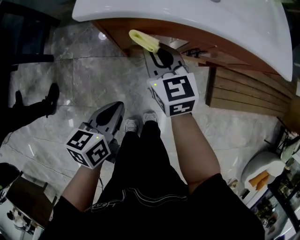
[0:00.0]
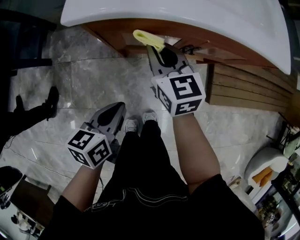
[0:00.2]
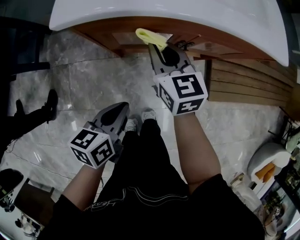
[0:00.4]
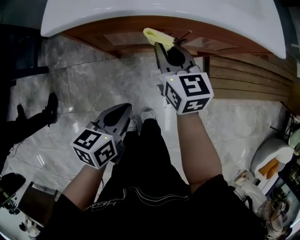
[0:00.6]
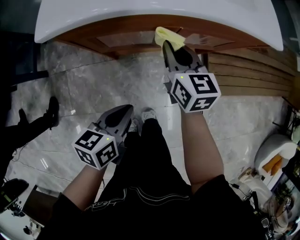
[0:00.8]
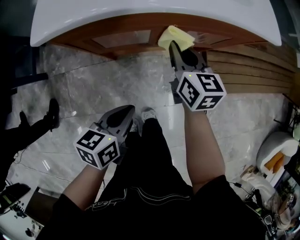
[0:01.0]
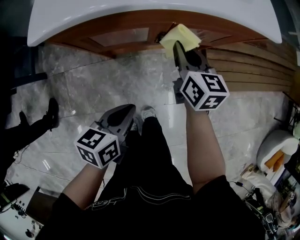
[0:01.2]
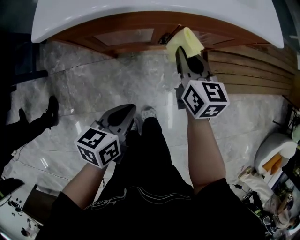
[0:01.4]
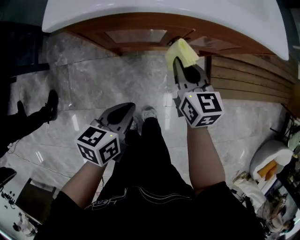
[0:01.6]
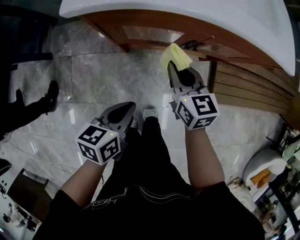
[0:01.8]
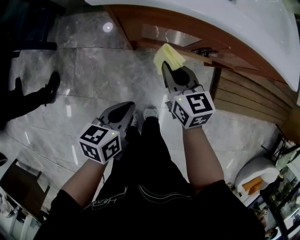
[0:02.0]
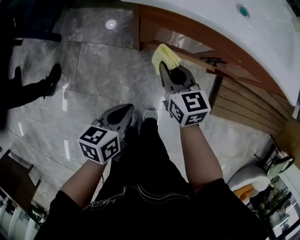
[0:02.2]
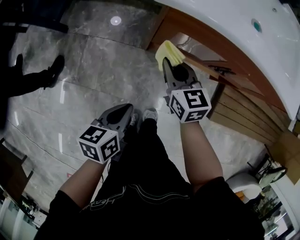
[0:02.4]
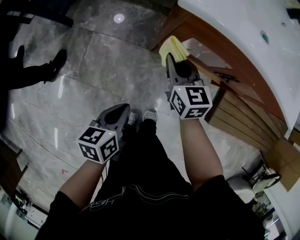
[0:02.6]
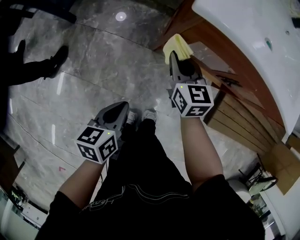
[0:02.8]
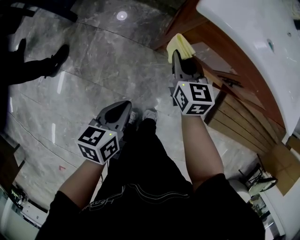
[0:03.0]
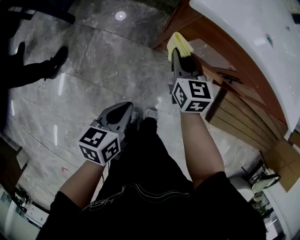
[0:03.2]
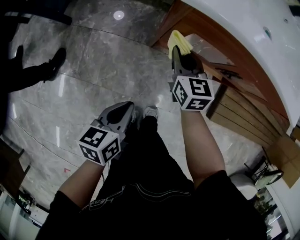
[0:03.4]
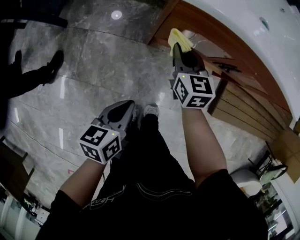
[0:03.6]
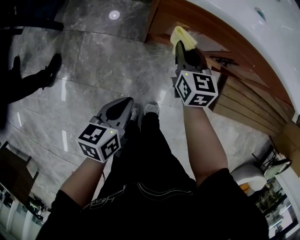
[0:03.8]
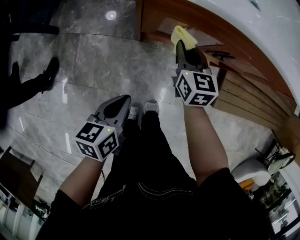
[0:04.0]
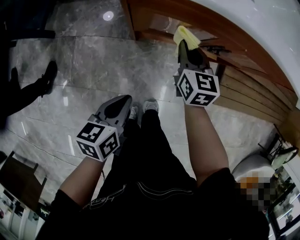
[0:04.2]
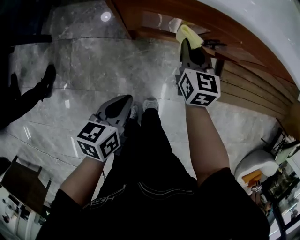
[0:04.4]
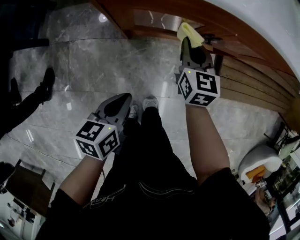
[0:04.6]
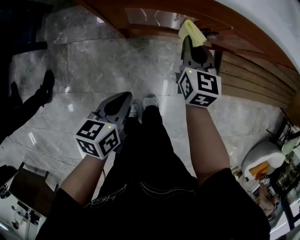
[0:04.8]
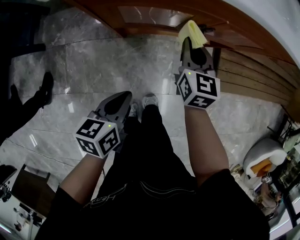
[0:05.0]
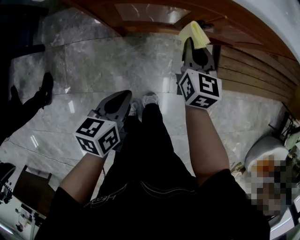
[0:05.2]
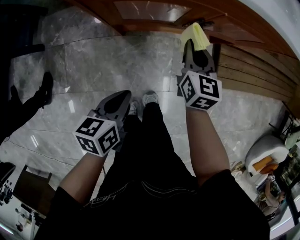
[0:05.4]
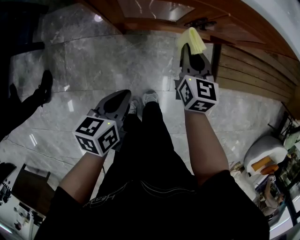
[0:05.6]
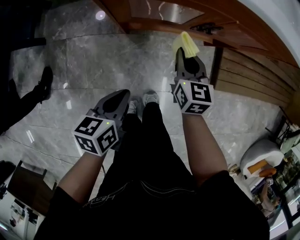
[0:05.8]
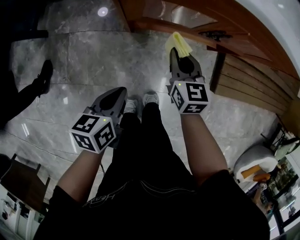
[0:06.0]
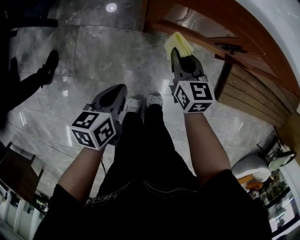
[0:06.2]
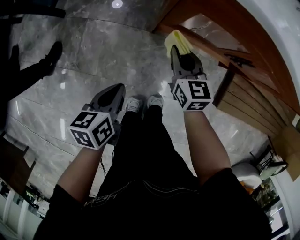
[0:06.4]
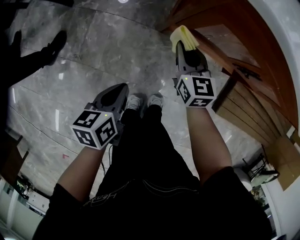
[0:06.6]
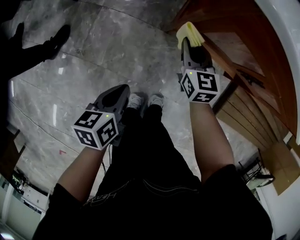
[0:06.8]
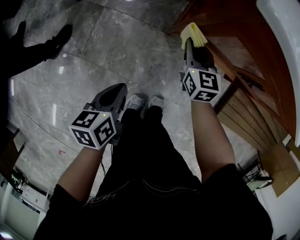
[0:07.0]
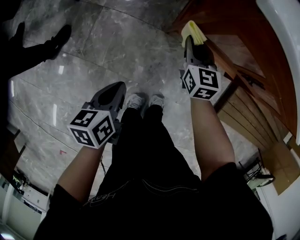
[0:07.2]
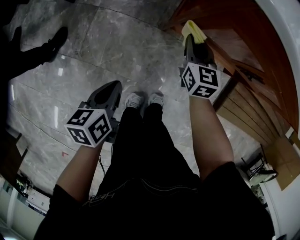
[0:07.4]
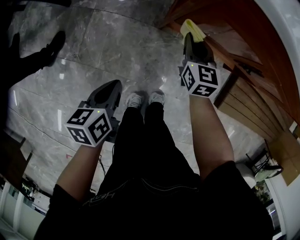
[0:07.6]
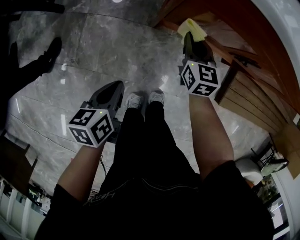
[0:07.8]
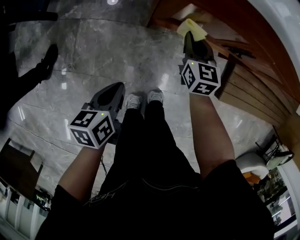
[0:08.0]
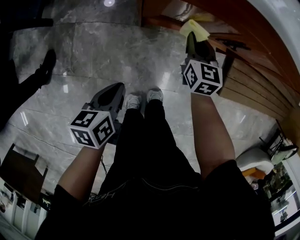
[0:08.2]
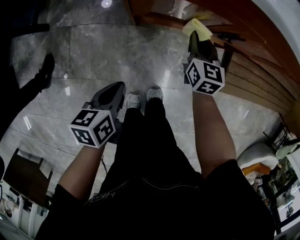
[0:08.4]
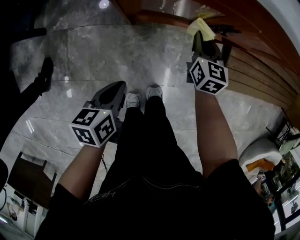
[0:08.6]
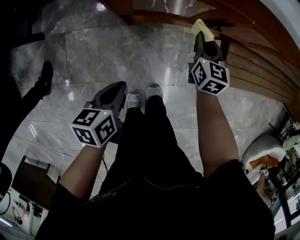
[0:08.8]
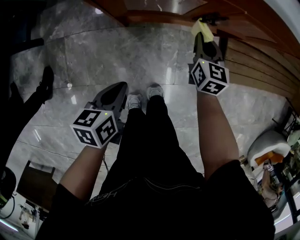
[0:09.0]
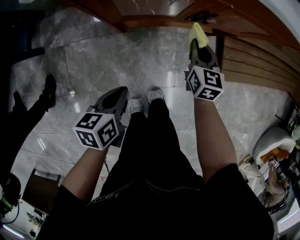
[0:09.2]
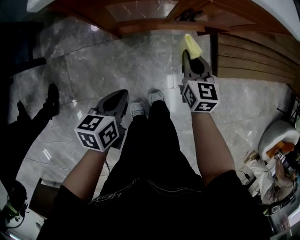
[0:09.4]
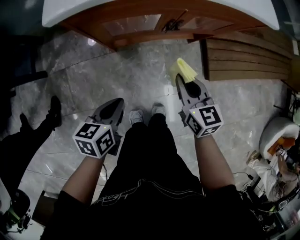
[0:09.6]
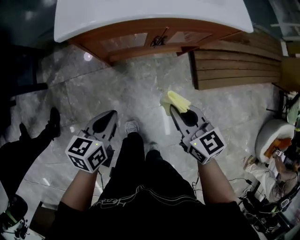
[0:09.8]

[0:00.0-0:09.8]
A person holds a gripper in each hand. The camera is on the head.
0:00.0 to 0:01.4: The right gripper travels to the right by approximately 20 cm, and swivels roughly 30 degrees; the left gripper heads to the right, covering roughly 10 cm.
0:01.4 to 0:02.8: The left gripper ends up about 20 cm from where it was, and rotates about 30 degrees. The right gripper ends up roughly 30 cm from where it was, and swivels roughly 30 degrees.
0:02.8 to 0:04.2: The left gripper goes some 10 cm to the right. Meanwhile the right gripper goes some 15 cm to the right.
0:04.2 to 0:05.6: The right gripper travels to the right by about 10 cm.
0:05.6 to 0:07.0: The right gripper shifts by about 25 cm, and changes its angle by roughly 30 degrees. The left gripper changes place by approximately 20 cm, and turns by some 30 degrees.
0:07.0 to 0:08.4: The left gripper heads to the right, covering some 10 cm. Meanwhile the right gripper is displaced to the right by approximately 20 cm, and swivels about 20 degrees.
0:08.4 to 0:09.8: The left gripper shifts roughly 15 cm upward and to the right, and swivels approximately 30 degrees. The right gripper travels upward, backward and to the right by some 30 cm.

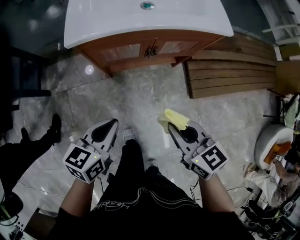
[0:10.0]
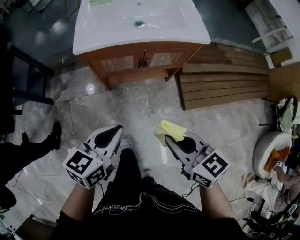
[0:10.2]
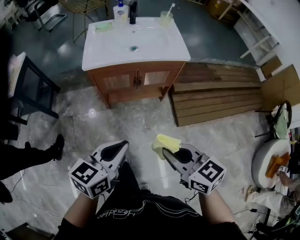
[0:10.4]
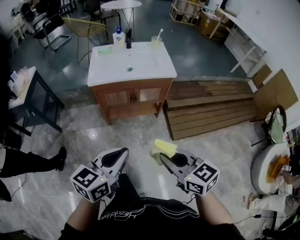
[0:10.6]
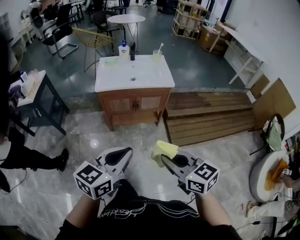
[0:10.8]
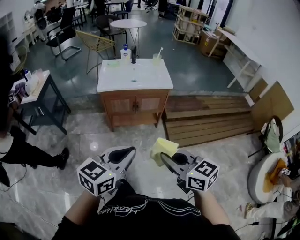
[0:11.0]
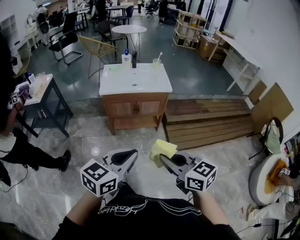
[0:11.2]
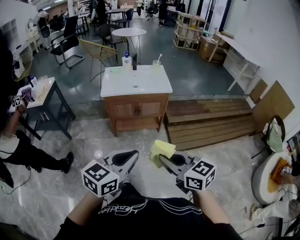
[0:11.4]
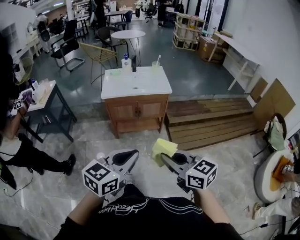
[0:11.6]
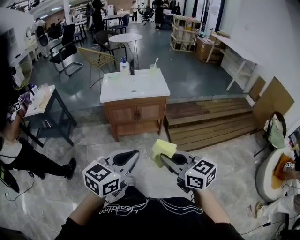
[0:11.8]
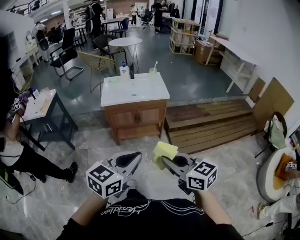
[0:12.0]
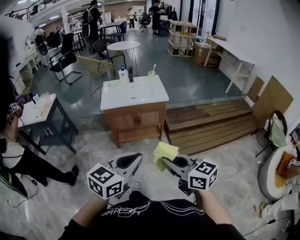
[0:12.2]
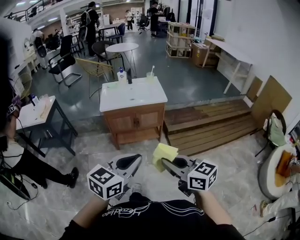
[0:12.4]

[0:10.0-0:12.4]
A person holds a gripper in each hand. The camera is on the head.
0:10.0 to 0:11.2: The left gripper moves backward, upward and to the right, roughly 50 cm, and turns by about 30 degrees; the right gripper goes about 40 cm backward and upward.
0:11.2 to 0:12.4: There are only small adjustments of the grippers.

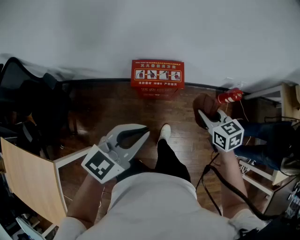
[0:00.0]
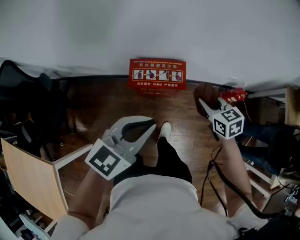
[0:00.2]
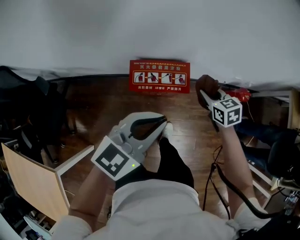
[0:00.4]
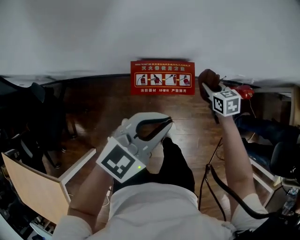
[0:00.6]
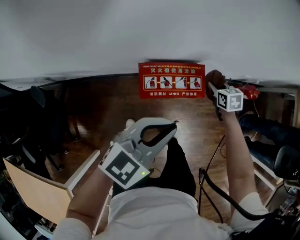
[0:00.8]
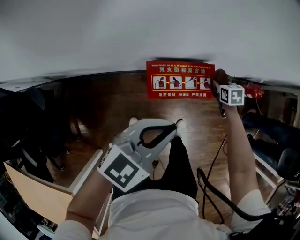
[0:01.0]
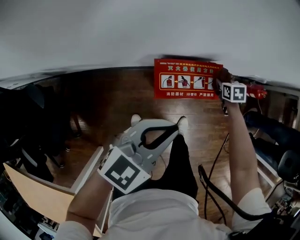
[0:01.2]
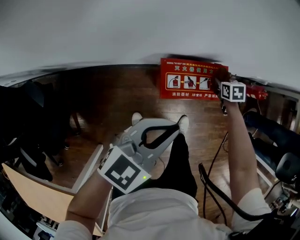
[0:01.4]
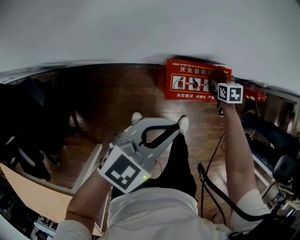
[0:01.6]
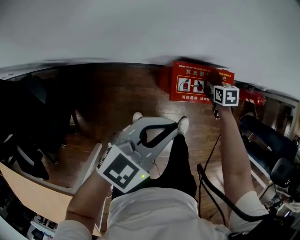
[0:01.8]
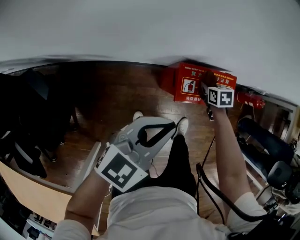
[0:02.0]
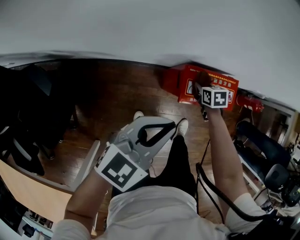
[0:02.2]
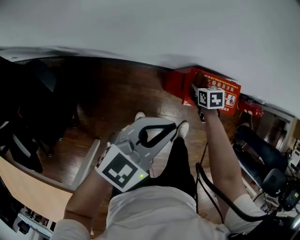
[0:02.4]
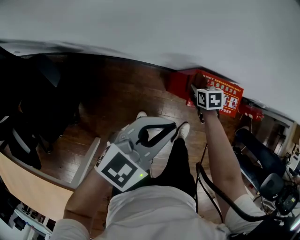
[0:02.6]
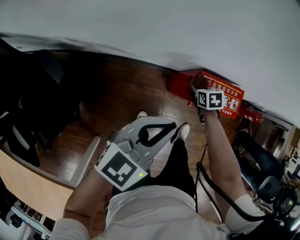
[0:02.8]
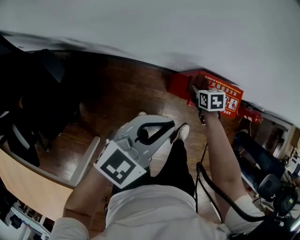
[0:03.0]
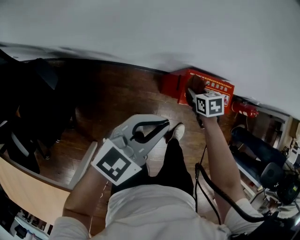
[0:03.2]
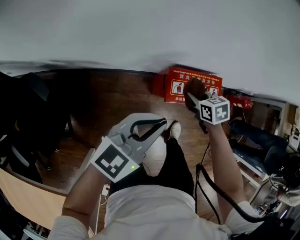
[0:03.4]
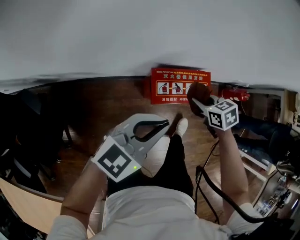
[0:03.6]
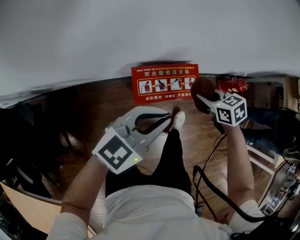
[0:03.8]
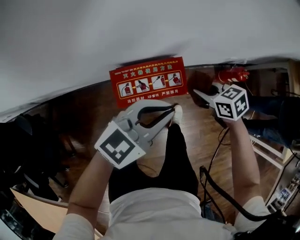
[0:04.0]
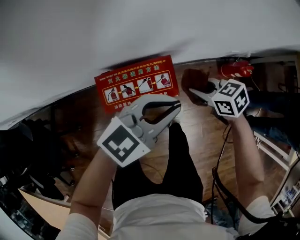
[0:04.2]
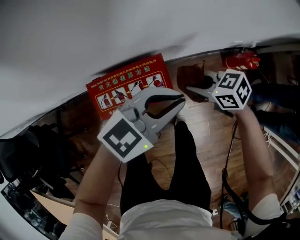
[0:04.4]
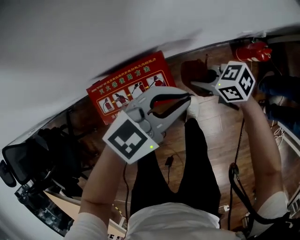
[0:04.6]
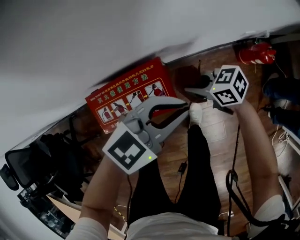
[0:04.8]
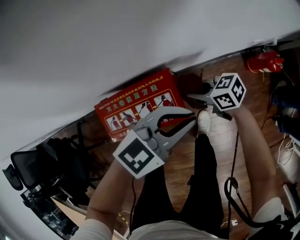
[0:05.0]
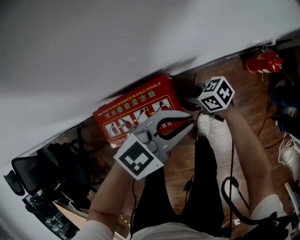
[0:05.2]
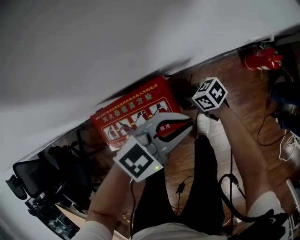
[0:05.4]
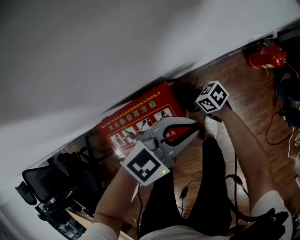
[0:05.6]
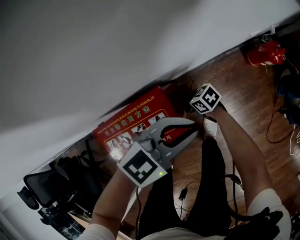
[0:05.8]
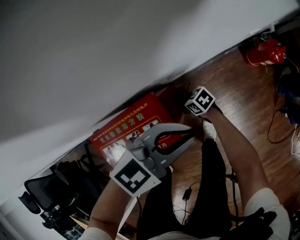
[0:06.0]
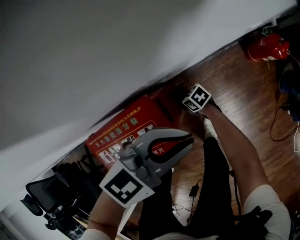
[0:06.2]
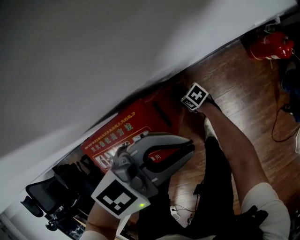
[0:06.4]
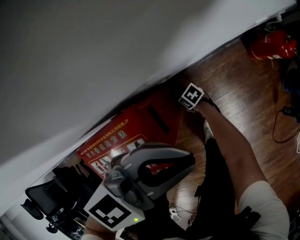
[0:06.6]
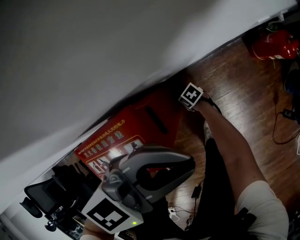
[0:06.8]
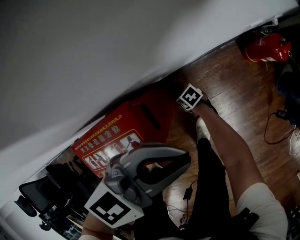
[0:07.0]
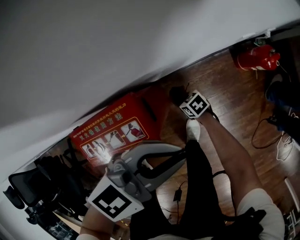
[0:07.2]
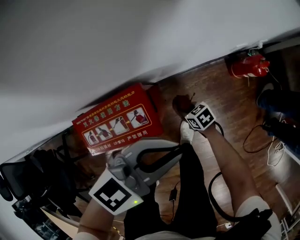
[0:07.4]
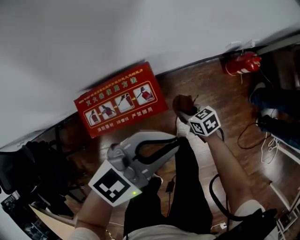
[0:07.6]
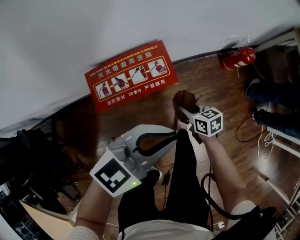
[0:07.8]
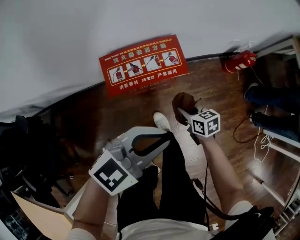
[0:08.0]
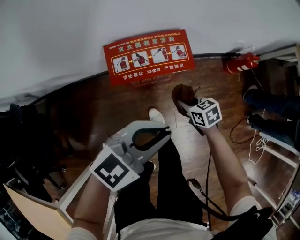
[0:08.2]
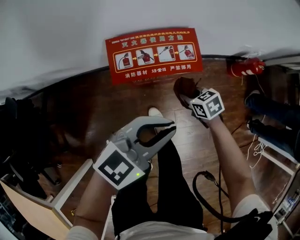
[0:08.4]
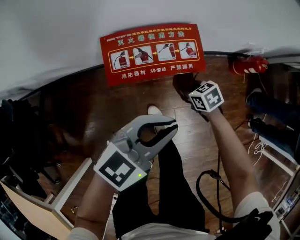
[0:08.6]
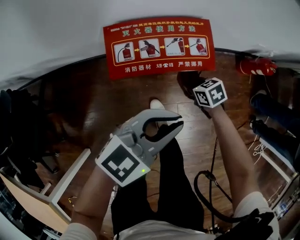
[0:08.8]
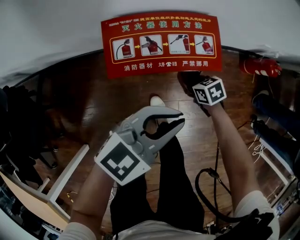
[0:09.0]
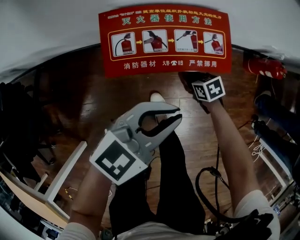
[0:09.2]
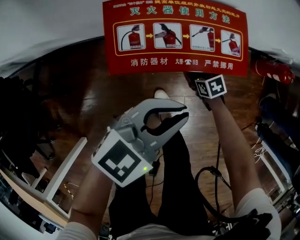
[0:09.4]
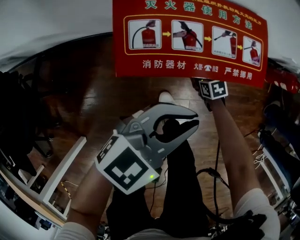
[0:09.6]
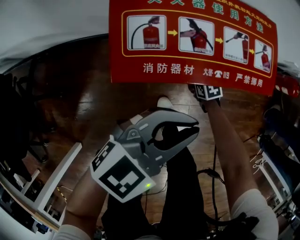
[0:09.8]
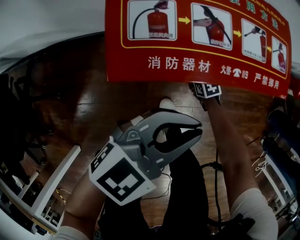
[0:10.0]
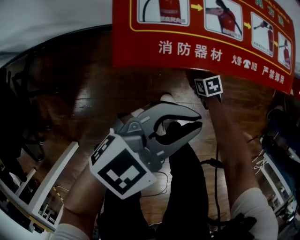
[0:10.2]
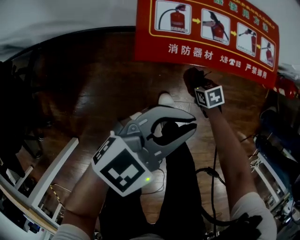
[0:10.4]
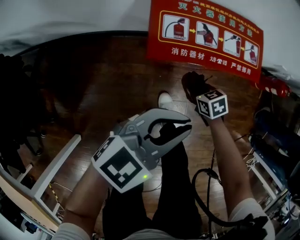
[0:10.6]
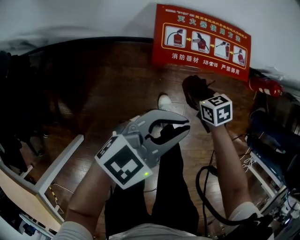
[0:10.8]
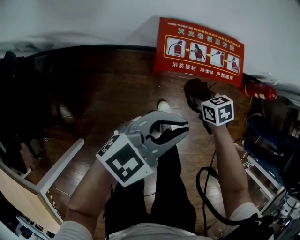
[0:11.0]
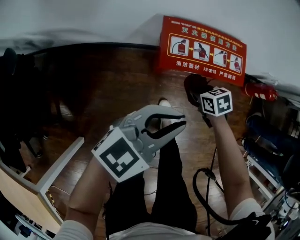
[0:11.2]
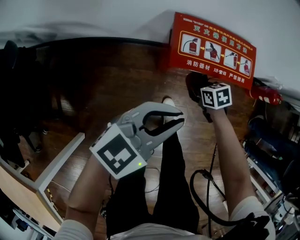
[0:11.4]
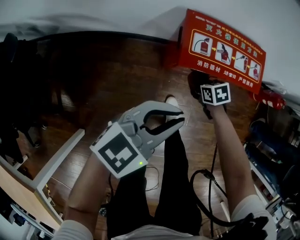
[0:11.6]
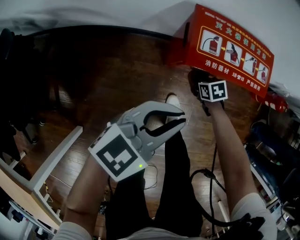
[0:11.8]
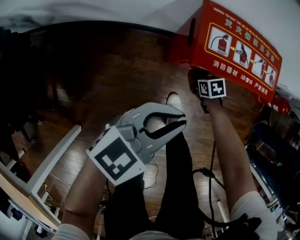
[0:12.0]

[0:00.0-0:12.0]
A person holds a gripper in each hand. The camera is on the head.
0:00.0 to 0:01.6: The right gripper travels downward, forward and to the left by roughly 40 cm, and swivels approximately 30 degrees. The left gripper heads to the left, forward and downward, covering some 30 cm.
0:01.6 to 0:03.0: The left gripper shifts about 15 cm to the left. The right gripper heads to the left, covering approximately 20 cm.
0:03.0 to 0:04.4: The right gripper ends up approximately 35 cm from where it was, and rotates roughly 30 degrees; the left gripper shifts by approximately 50 cm, and changes its angle by some 30 degrees.
0:04.4 to 0:06.0: The right gripper travels downward by some 30 cm; the left gripper heads downward, covering about 15 cm.
0:06.0 to 0:07.6: The right gripper shifts by approximately 15 cm, while the left gripper is displaced upward by some 10 cm.
0:07.6 to 0:09.0: The right gripper changes place by approximately 15 cm. The left gripper ends up about 20 cm from where it was.
0:09.0 to 0:10.4: The right gripper travels downward by about 15 cm. The left gripper travels downward by roughly 10 cm.
0:10.4 to 0:12.0: The left gripper moves approximately 15 cm upward and comes back; the right gripper travels upward and back again, some 25 cm each way.
